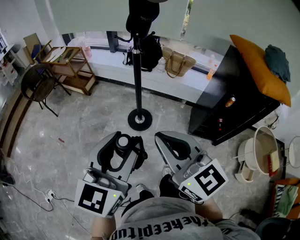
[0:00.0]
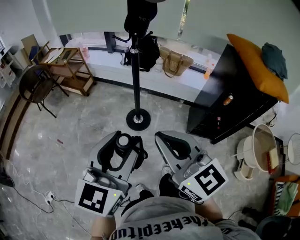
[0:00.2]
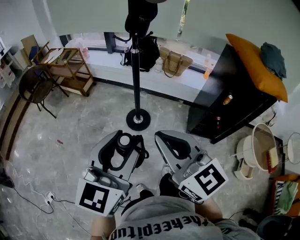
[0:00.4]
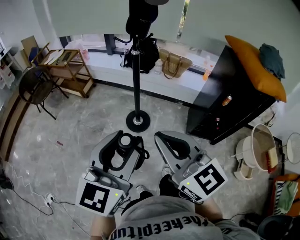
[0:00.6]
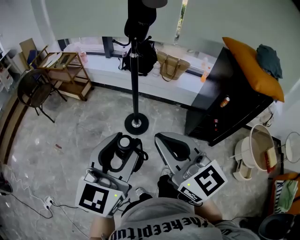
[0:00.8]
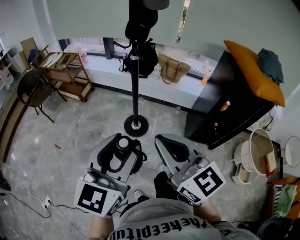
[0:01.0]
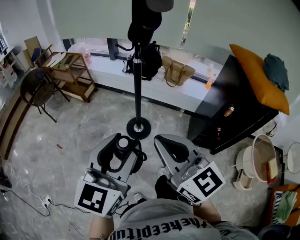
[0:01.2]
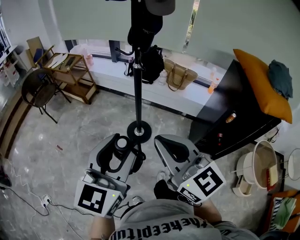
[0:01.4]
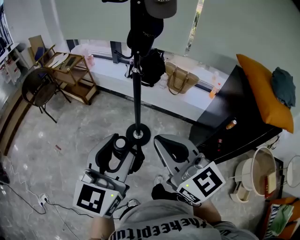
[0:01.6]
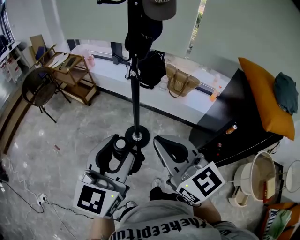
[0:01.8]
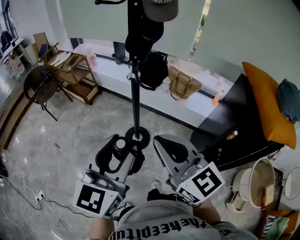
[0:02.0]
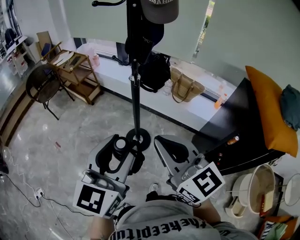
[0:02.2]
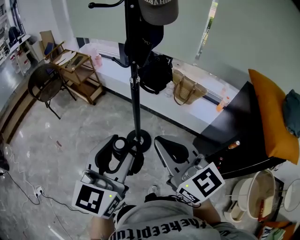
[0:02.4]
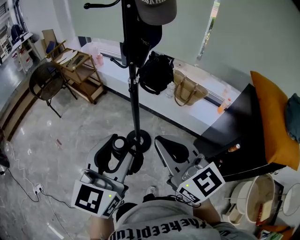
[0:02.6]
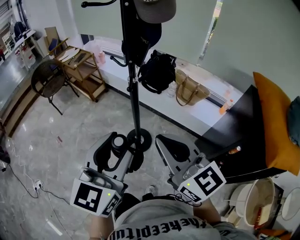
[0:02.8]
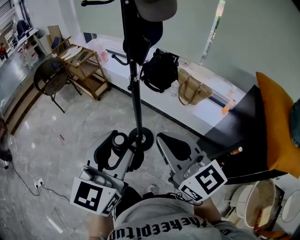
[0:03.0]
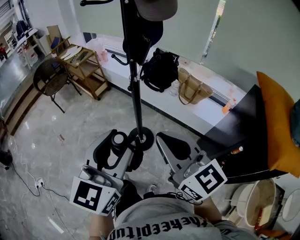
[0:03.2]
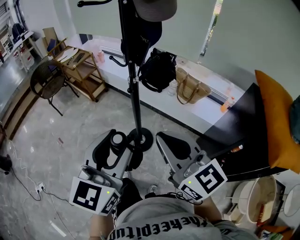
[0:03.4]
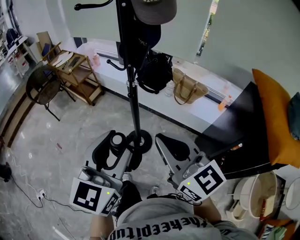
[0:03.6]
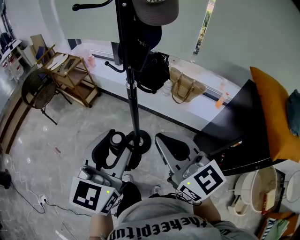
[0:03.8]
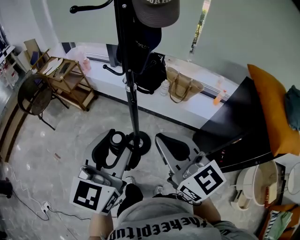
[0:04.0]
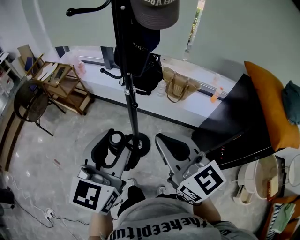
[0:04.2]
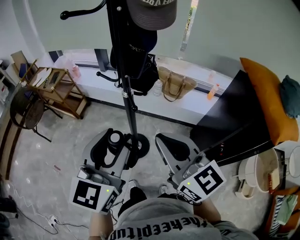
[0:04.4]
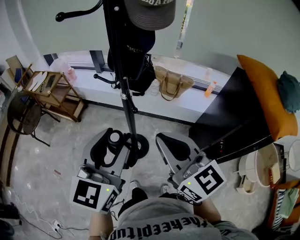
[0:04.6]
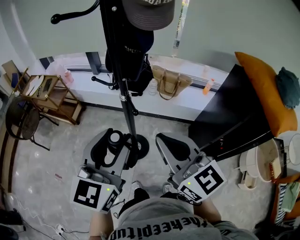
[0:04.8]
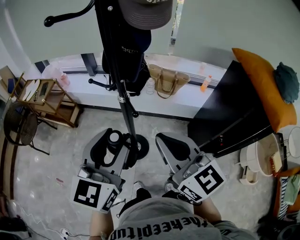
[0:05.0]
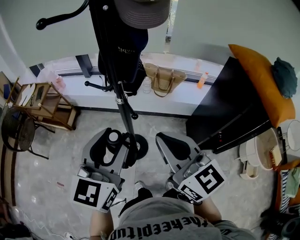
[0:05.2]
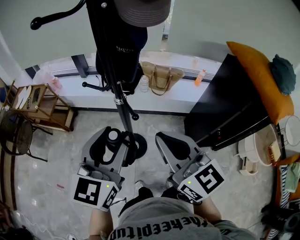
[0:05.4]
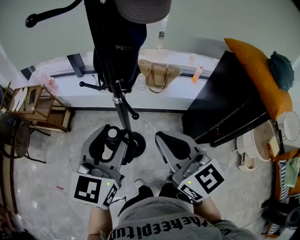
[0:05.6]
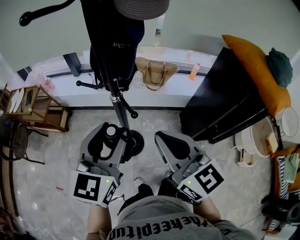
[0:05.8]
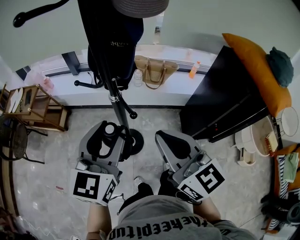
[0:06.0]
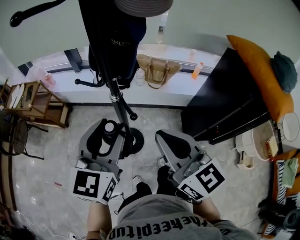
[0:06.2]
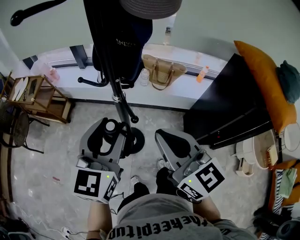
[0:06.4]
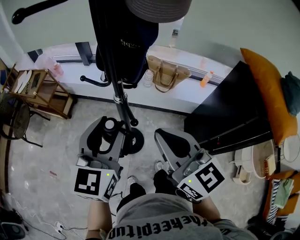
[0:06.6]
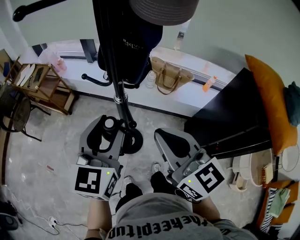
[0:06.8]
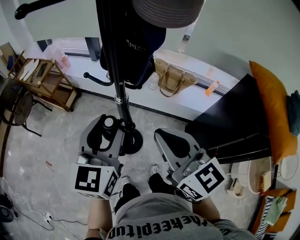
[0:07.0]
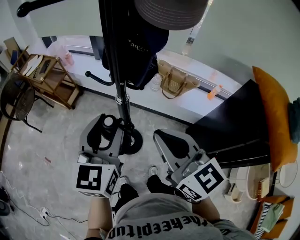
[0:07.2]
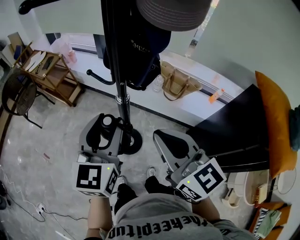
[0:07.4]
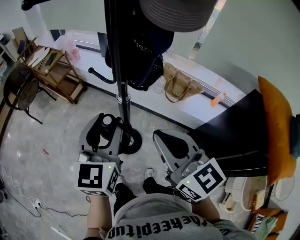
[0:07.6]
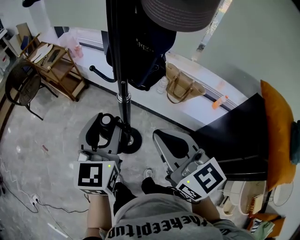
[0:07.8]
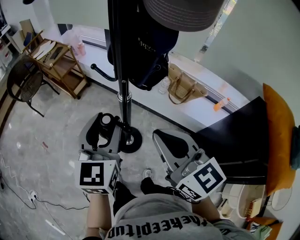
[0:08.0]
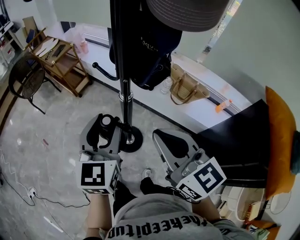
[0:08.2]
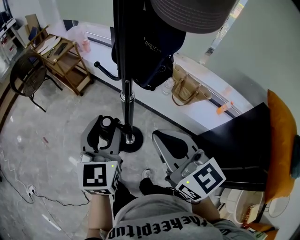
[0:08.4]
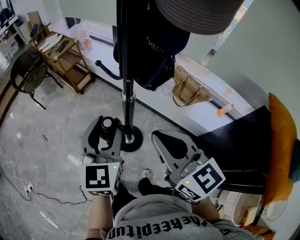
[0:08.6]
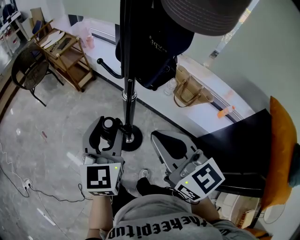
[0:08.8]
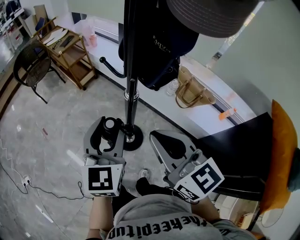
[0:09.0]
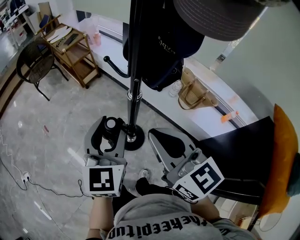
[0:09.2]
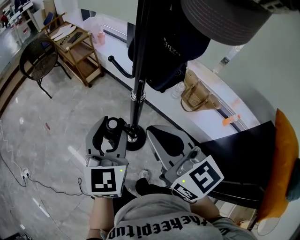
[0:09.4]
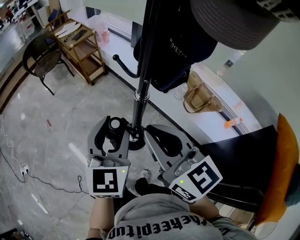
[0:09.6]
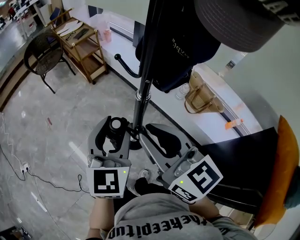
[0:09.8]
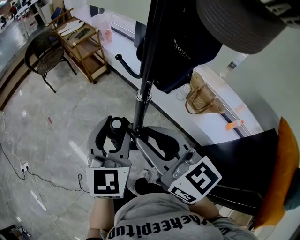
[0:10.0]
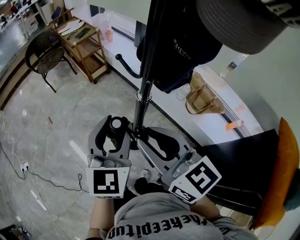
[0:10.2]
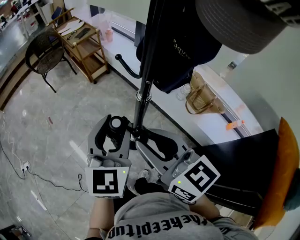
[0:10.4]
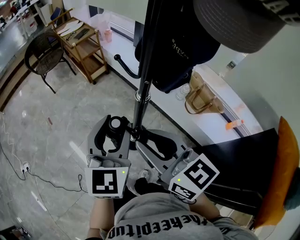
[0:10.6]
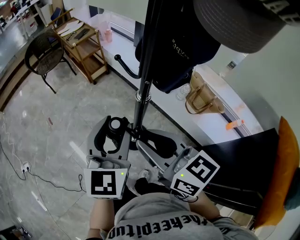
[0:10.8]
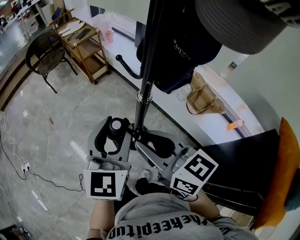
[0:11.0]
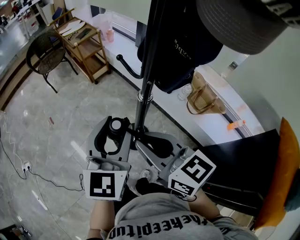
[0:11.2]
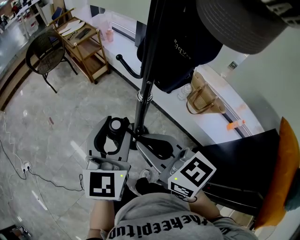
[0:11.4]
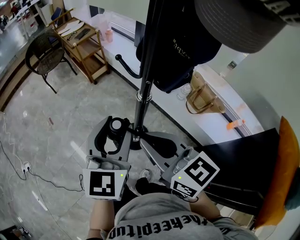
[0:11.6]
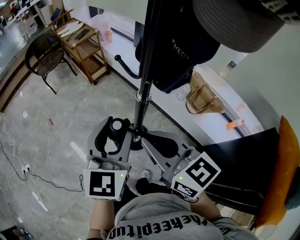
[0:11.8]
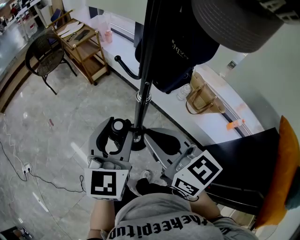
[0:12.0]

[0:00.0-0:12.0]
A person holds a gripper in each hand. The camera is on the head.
0:00.0 to 0:01.6: Both grippers move forward, approximately 10 cm.
0:01.6 to 0:03.0: The two grippers go roughly 15 cm to the right and forward.
0:03.0 to 0:04.4: Both grippers travel together forward and to the left, roughly 10 cm.
0:04.4 to 0:06.0: The right gripper moves about 5 cm, while the left gripper goes some 10 cm forward.
0:06.0 to 0:07.6: The left gripper changes its angle by about 30 degrees. Meanwhile the right gripper changes place by some 5 cm, and rotates about 20 degrees.
0:07.6 to 0:09.0: The grippers stay close to where they were, moving slightly.
0:09.0 to 0:10.4: The right gripper opens.
0:10.4 to 0:12.0: The right gripper closes.

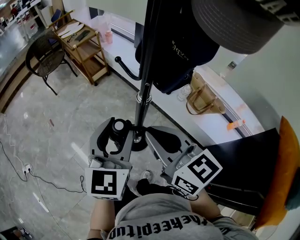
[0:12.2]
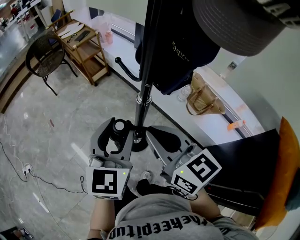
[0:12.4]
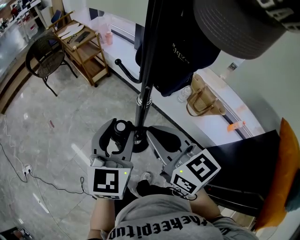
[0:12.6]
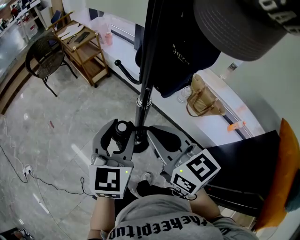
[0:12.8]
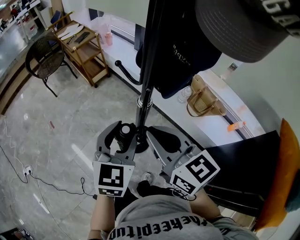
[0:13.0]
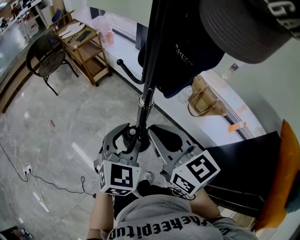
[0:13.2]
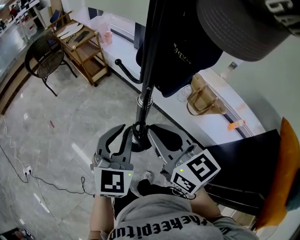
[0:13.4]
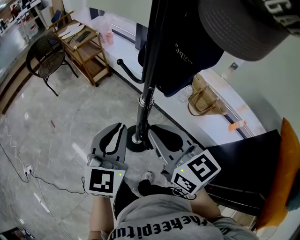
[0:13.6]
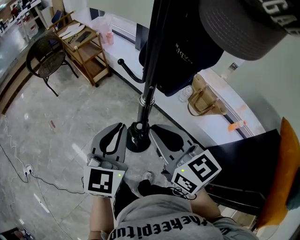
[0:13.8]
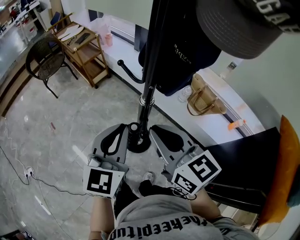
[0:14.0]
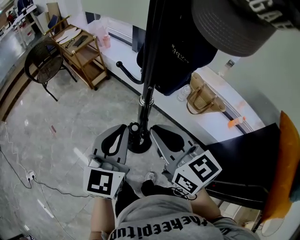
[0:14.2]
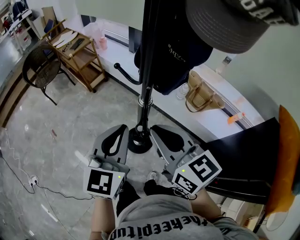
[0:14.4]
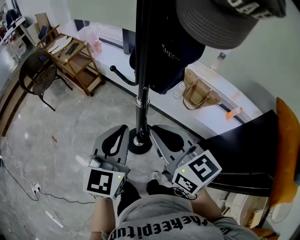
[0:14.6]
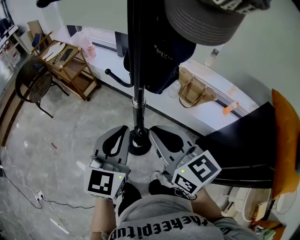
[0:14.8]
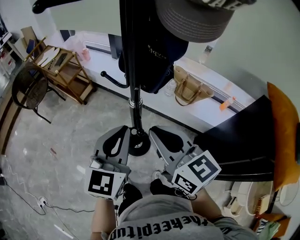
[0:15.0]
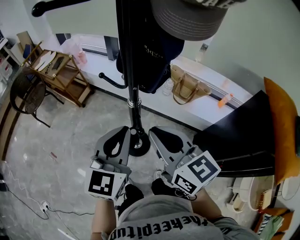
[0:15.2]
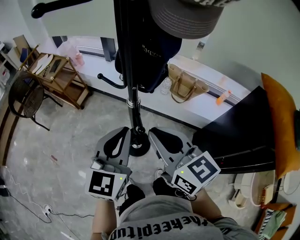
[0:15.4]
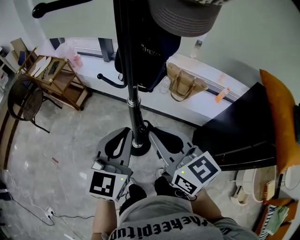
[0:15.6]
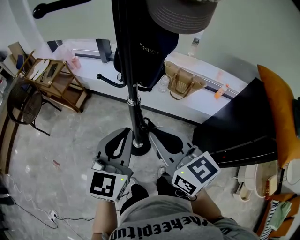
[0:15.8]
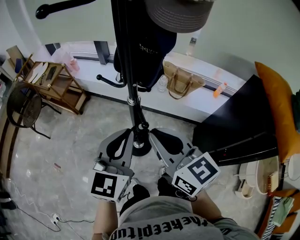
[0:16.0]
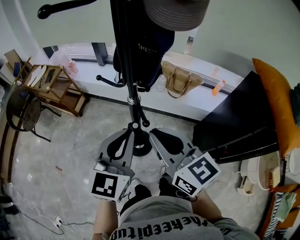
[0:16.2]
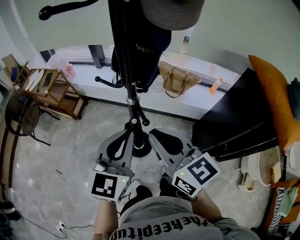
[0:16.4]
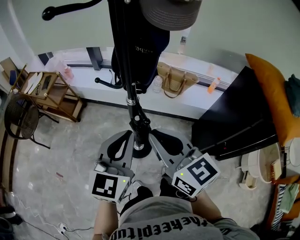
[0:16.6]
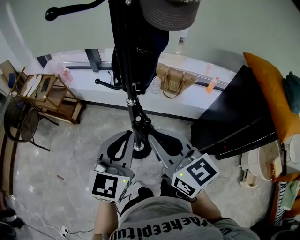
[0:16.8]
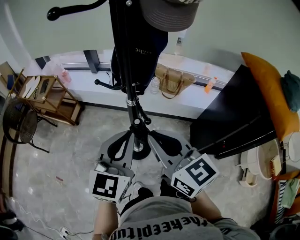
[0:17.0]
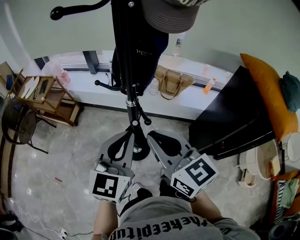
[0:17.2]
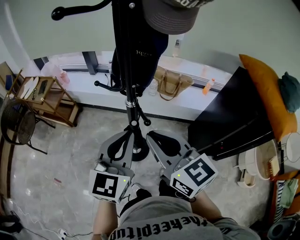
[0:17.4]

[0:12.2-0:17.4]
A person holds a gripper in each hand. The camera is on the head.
0:12.2 to 0:14.0: The left gripper closes its fingers.
0:14.0 to 0:15.6: The right gripper changes its angle by some 20 degrees; the left gripper swivels roughly 20 degrees.
0:15.6 to 0:17.4: The right gripper ends up some 5 cm from where it was.

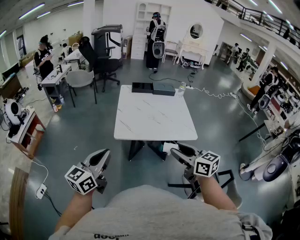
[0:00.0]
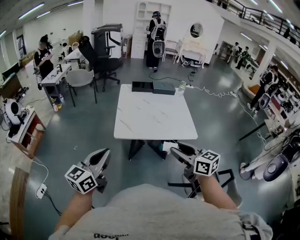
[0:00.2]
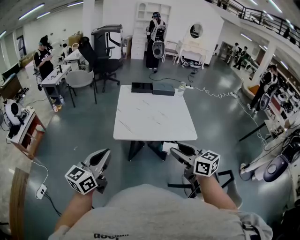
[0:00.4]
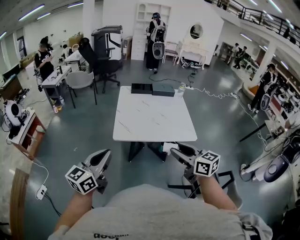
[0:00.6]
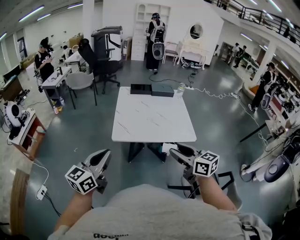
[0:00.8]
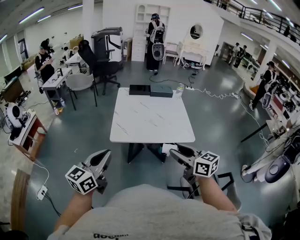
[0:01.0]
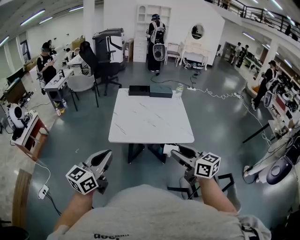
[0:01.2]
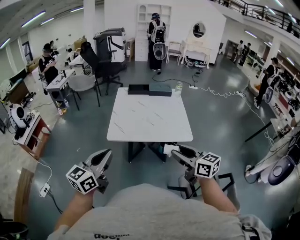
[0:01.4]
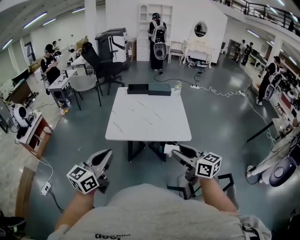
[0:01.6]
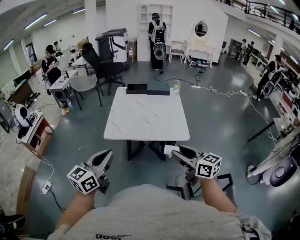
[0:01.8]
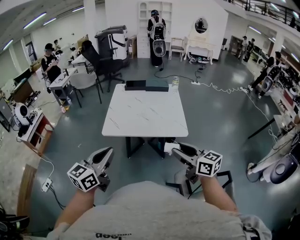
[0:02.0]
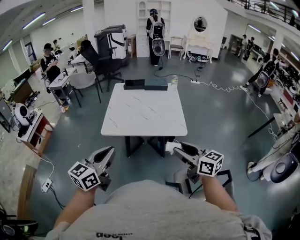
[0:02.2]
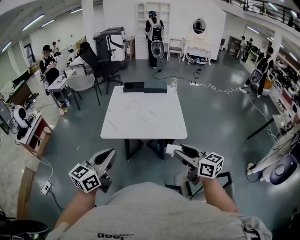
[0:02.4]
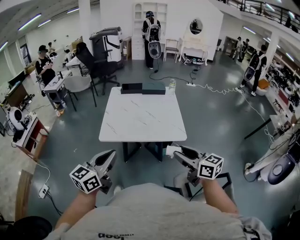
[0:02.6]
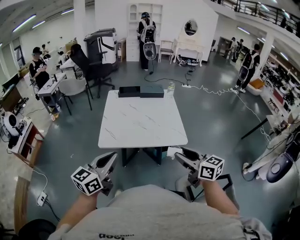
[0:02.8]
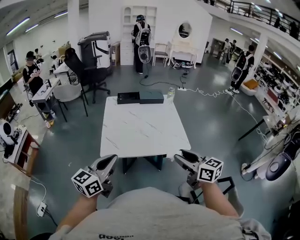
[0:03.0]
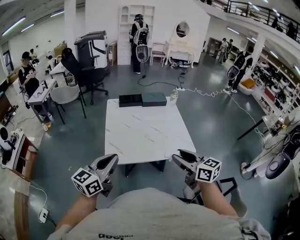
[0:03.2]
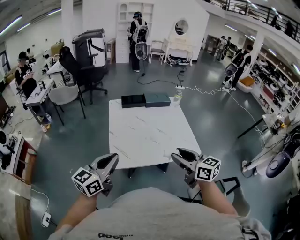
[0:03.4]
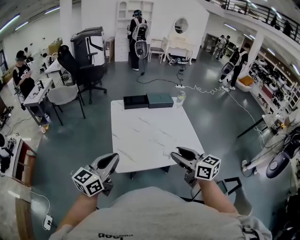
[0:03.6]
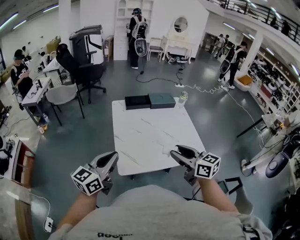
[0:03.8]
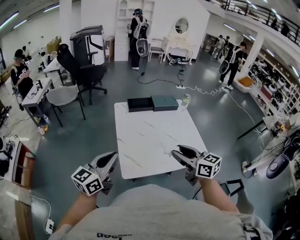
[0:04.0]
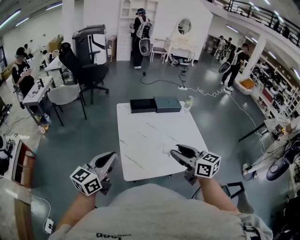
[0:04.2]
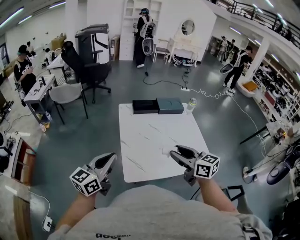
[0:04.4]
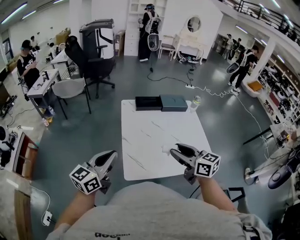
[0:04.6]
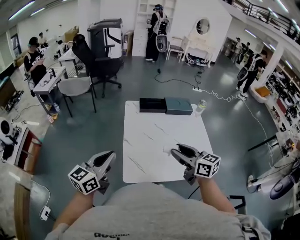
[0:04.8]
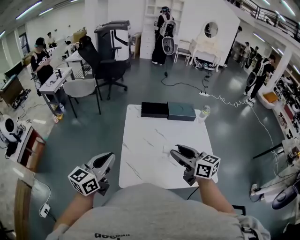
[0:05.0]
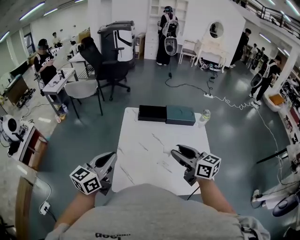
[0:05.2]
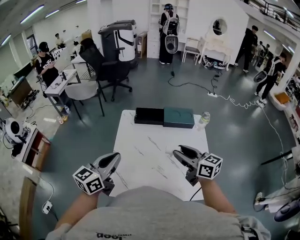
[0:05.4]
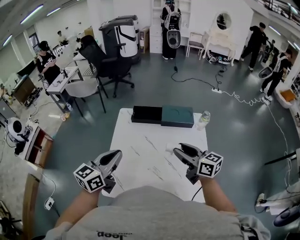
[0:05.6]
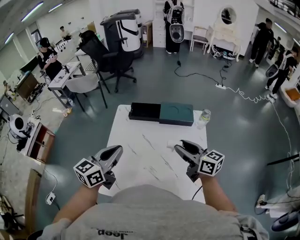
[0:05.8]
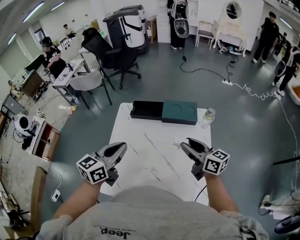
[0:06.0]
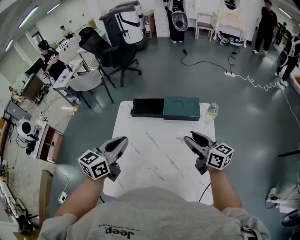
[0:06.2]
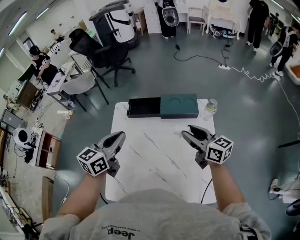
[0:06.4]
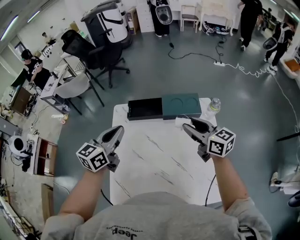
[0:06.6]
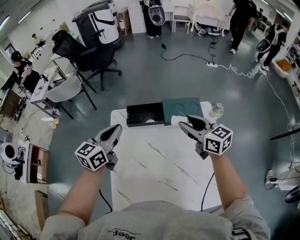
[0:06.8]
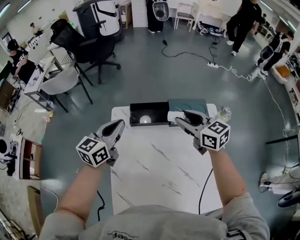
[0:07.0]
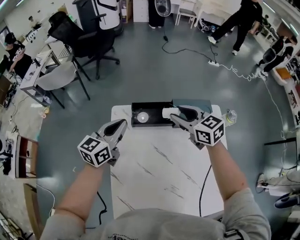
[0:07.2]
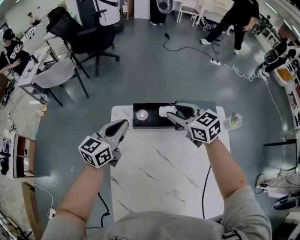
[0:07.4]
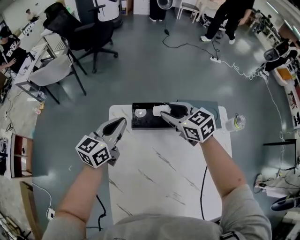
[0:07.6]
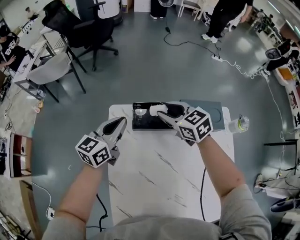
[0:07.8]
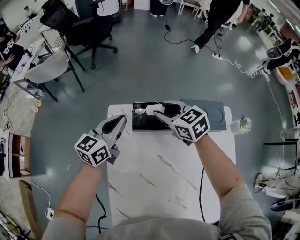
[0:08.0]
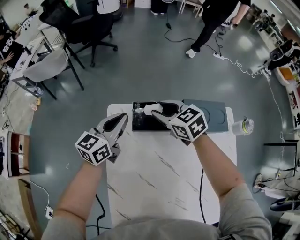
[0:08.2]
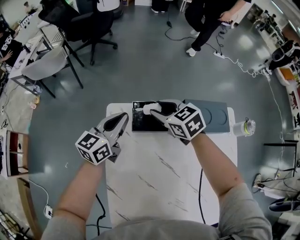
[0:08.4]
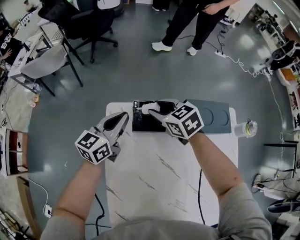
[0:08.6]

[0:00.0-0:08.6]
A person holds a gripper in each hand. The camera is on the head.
0:00.0 to 0:01.4: Both grippers move to the right, approximately 10 cm.
0:01.4 to 0:02.8: Both grippers move to the right, approximately 5 cm.
0:02.8 to 0:04.4: The right gripper moves to the left and forward, roughly 35 cm. The left gripper shifts about 35 cm forward and to the left.
0:04.4 to 0:05.8: Both grippers move to the right and forward, approximately 30 cm.
0:05.8 to 0:07.2: The left gripper is displaced forward and downward by roughly 30 cm; the right gripper is displaced forward and to the left by approximately 30 cm, and changes its angle by some 30 degrees.
0:07.2 to 0:08.6: The right gripper moves downward, forward and to the left, some 20 cm. The left gripper shifts roughly 15 cm downward and forward.
